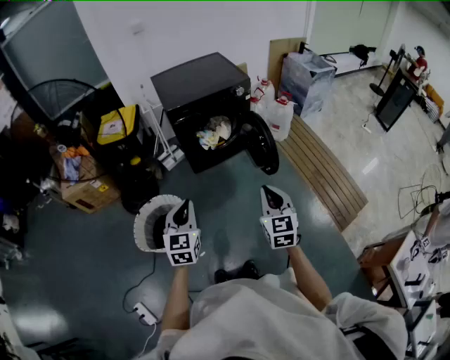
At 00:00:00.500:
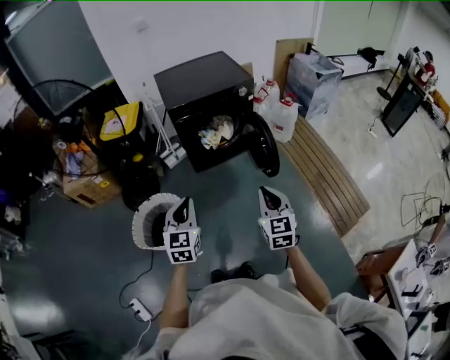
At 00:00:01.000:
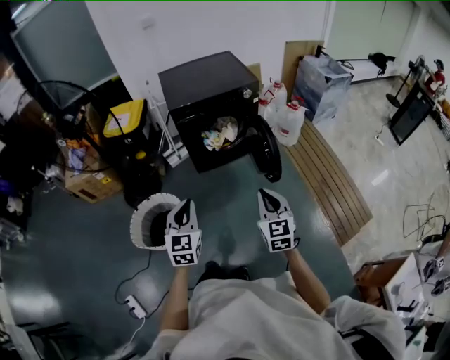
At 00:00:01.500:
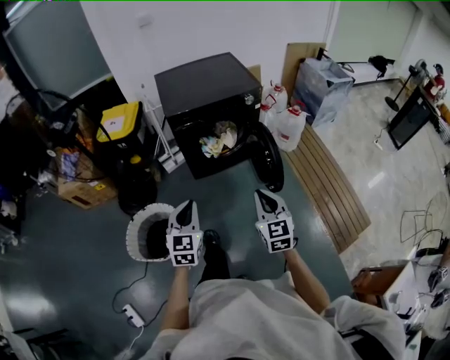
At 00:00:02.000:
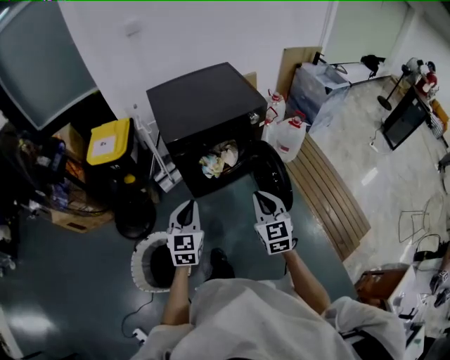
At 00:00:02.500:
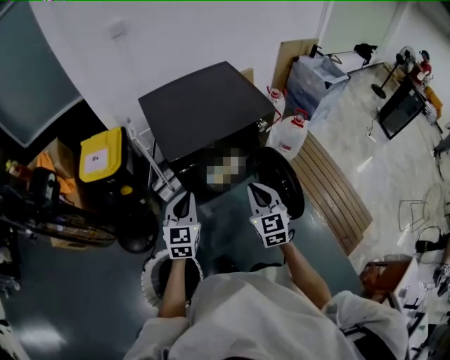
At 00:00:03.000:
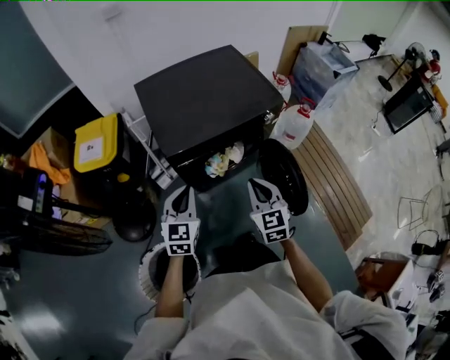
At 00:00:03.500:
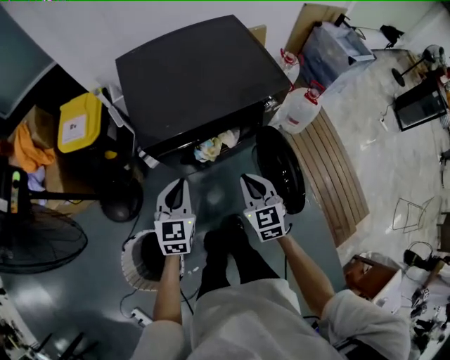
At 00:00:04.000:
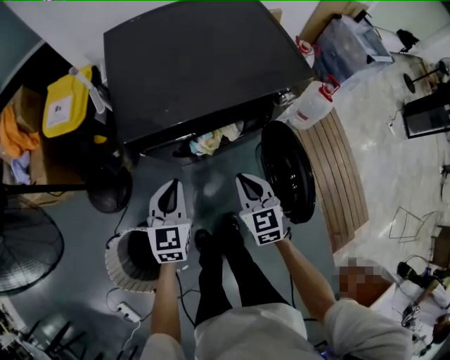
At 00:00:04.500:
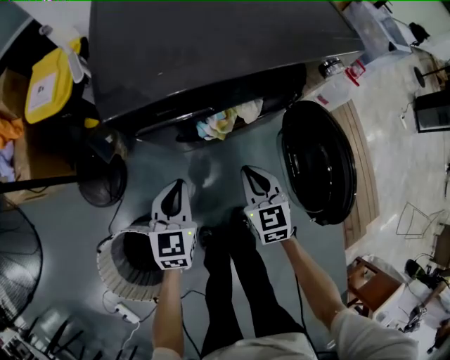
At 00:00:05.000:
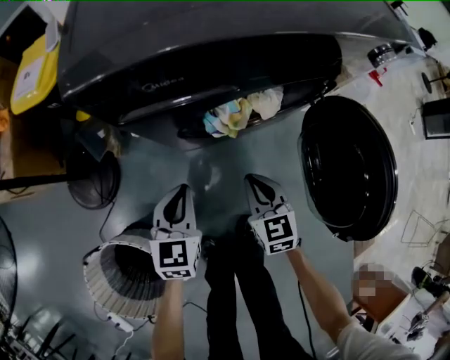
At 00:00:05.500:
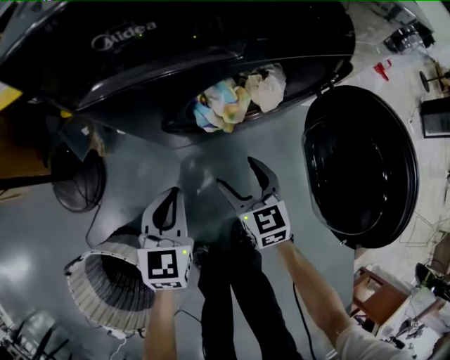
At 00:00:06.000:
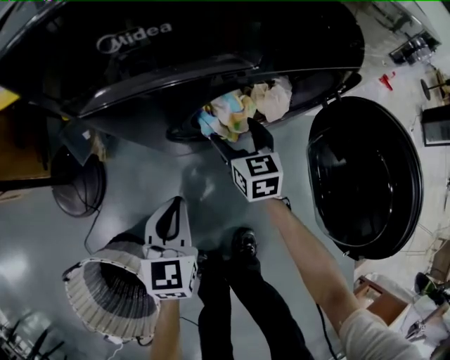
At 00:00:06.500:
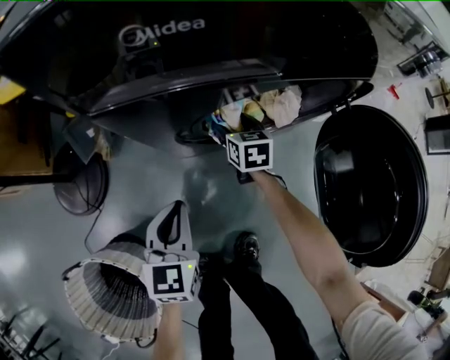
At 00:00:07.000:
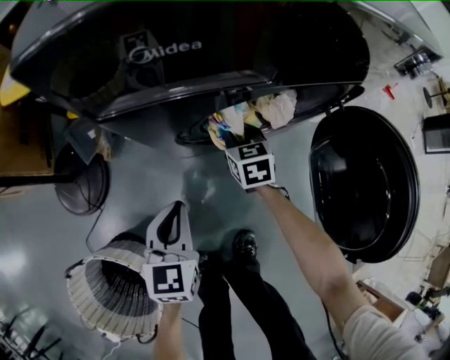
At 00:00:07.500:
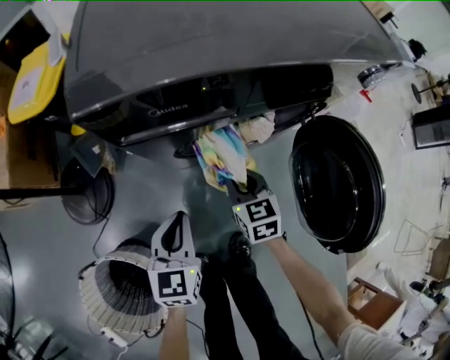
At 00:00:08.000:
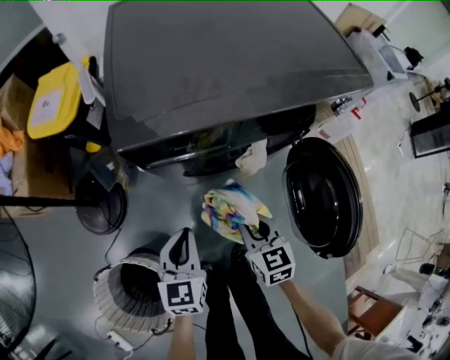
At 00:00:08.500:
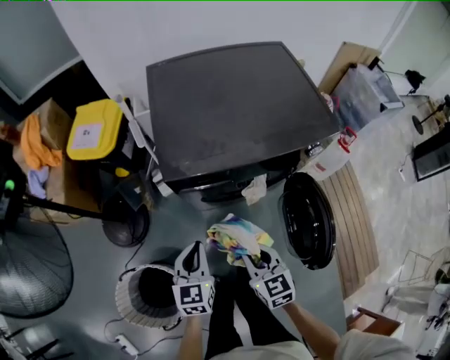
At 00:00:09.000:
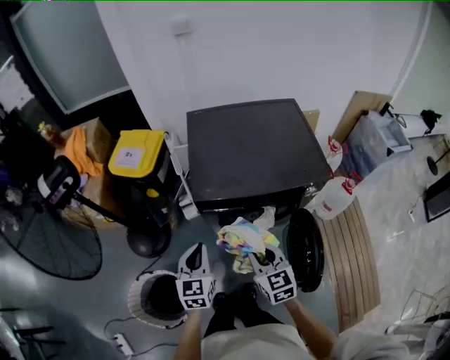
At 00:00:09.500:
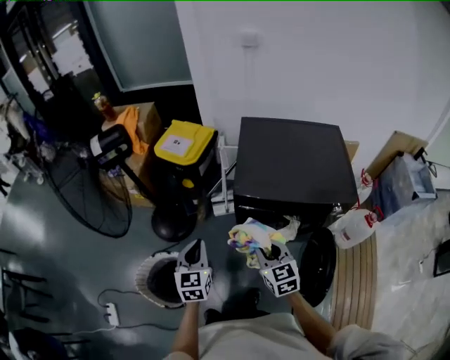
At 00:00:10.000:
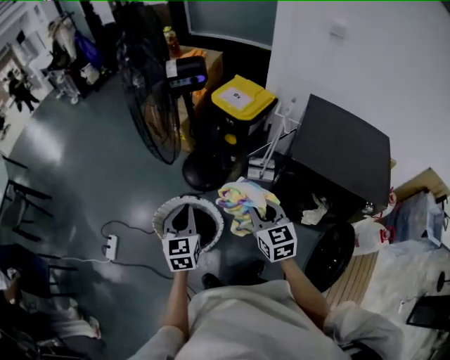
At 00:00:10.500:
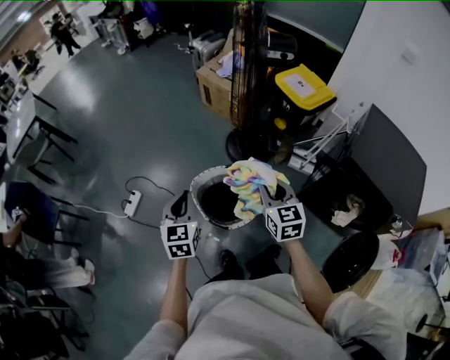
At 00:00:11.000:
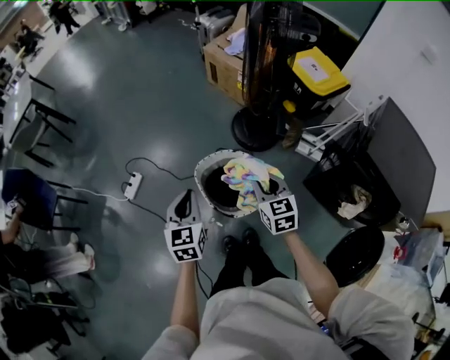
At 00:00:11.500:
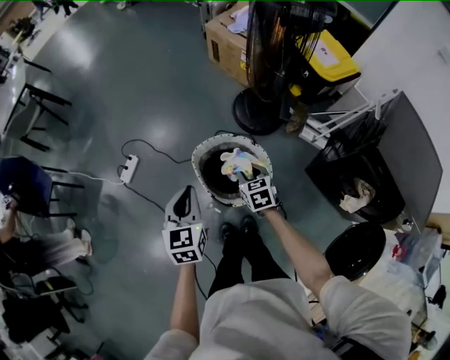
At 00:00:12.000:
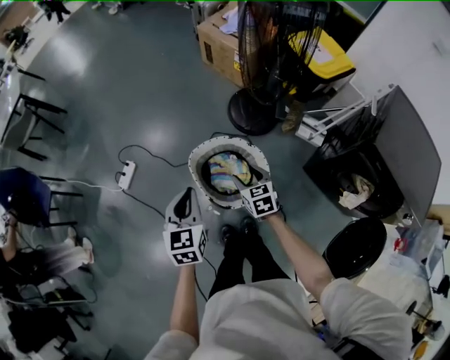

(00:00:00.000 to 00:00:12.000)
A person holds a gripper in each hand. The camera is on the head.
00:00:00.000 - 00:00:02.000: The two grippers go some 30 cm forward.
00:00:02.000 - 00:00:04.000: Both grippers travel together forward and downward, approximately 35 cm.
00:00:04.000 - 00:00:06.000: The left gripper heads downward, covering roughly 35 cm; the right gripper moves downward and forward, some 40 cm, and opens its fingers.
00:00:06.000 - 00:00:08.000: The left gripper goes some 15 cm upward, while the right gripper heads upward and backward, covering some 25 cm, and closes.
00:00:08.000 - 00:00:10.000: The right gripper goes some 40 cm upward, and swivels approximately 50 degrees. Meanwhile the left gripper moves roughly 50 cm, and rotates approximately 50 degrees.
00:00:10.000 - 00:00:12.000: The left gripper is displaced to the left and downward by approximately 25 cm, and changes its angle by some 20 degrees. Meanwhile the right gripper travels to the left, downward and forward by roughly 40 cm, rotates approximately 30 degrees, and opens its fingers.

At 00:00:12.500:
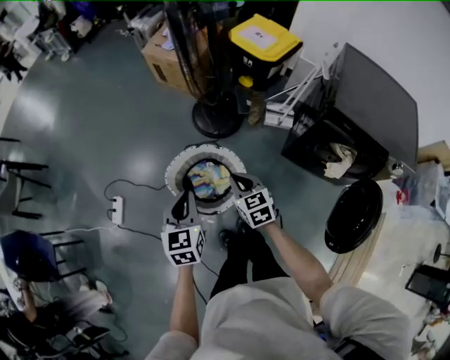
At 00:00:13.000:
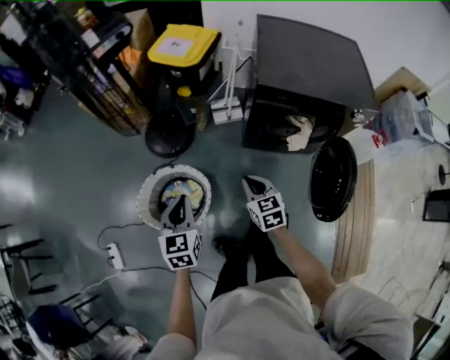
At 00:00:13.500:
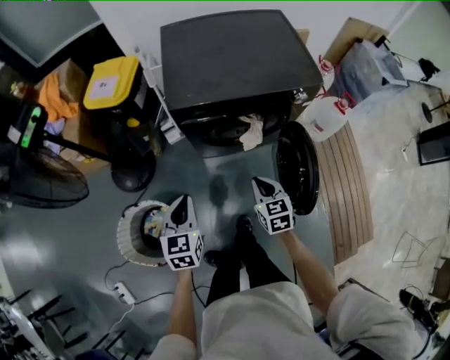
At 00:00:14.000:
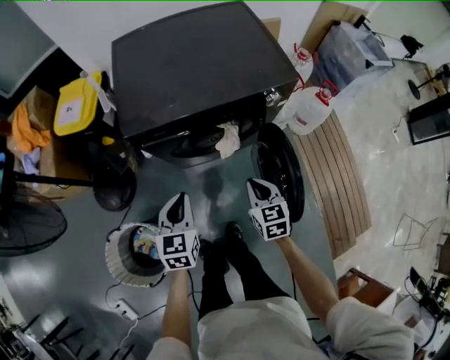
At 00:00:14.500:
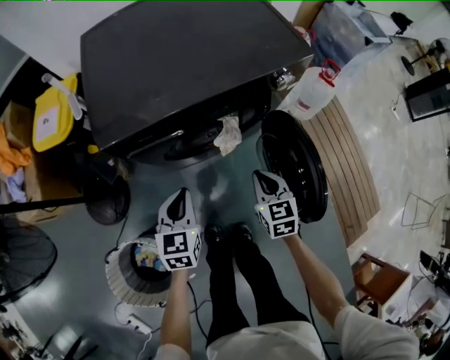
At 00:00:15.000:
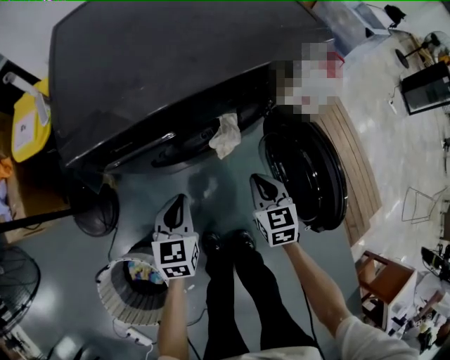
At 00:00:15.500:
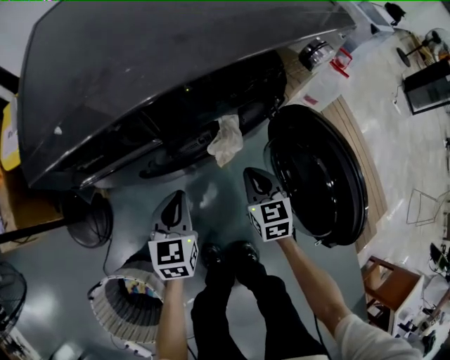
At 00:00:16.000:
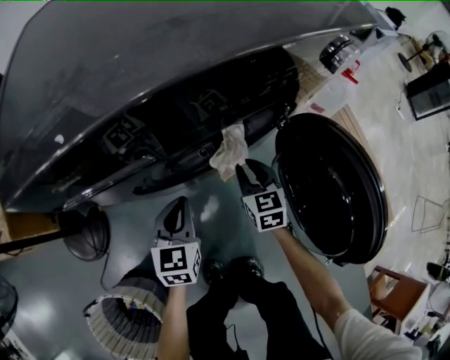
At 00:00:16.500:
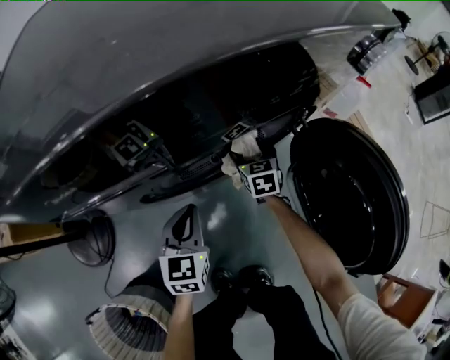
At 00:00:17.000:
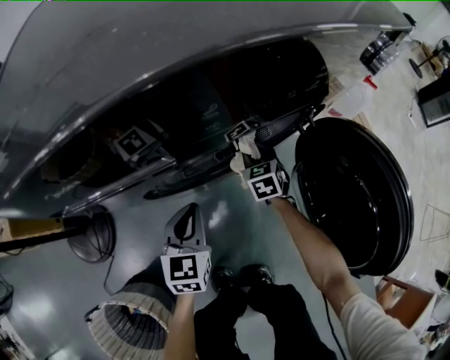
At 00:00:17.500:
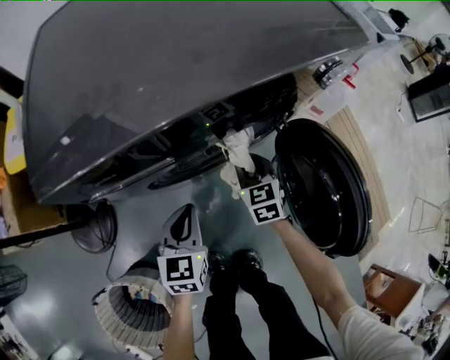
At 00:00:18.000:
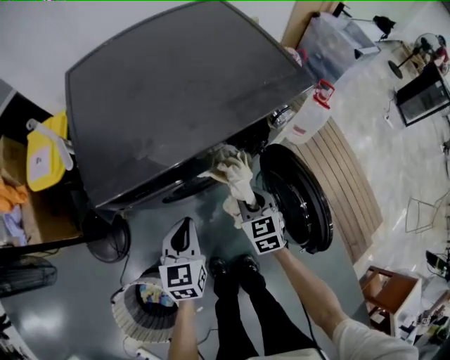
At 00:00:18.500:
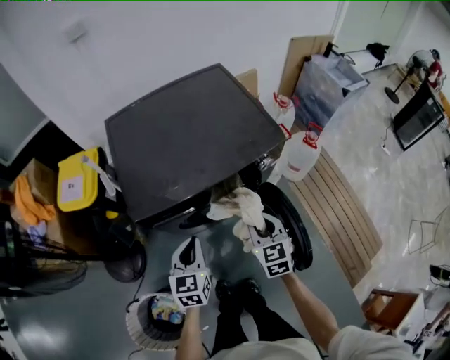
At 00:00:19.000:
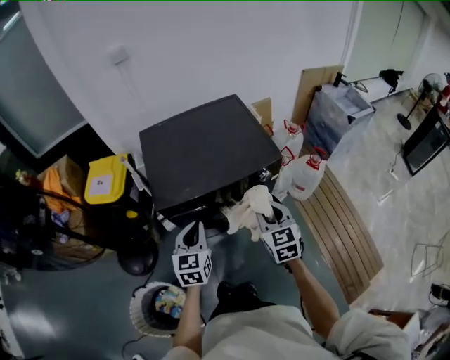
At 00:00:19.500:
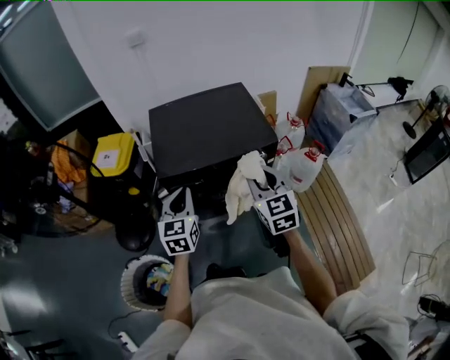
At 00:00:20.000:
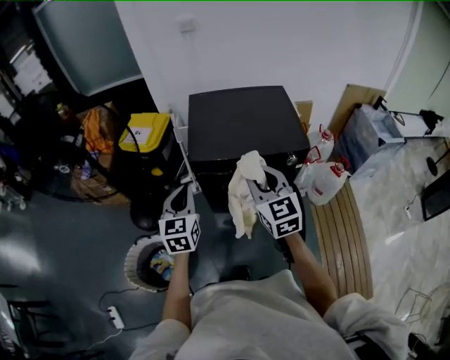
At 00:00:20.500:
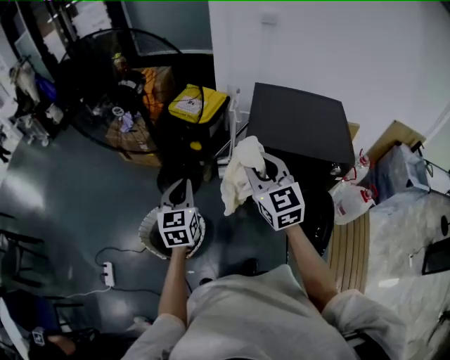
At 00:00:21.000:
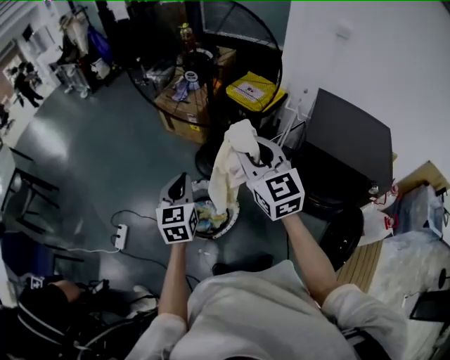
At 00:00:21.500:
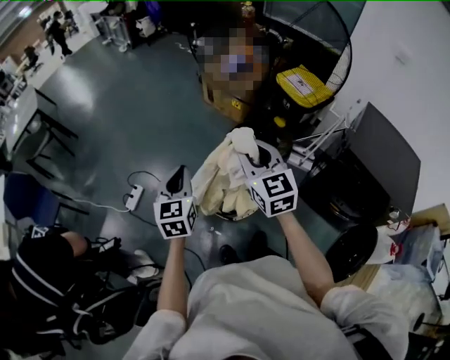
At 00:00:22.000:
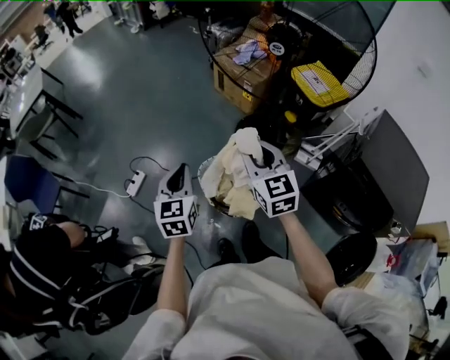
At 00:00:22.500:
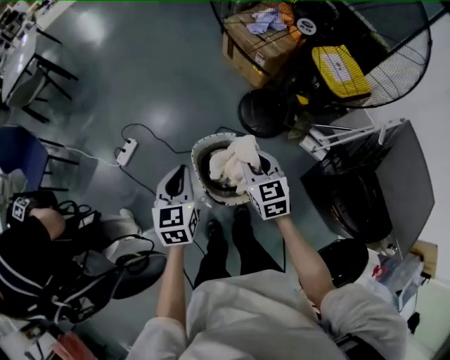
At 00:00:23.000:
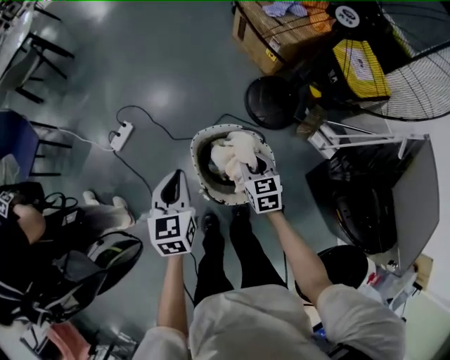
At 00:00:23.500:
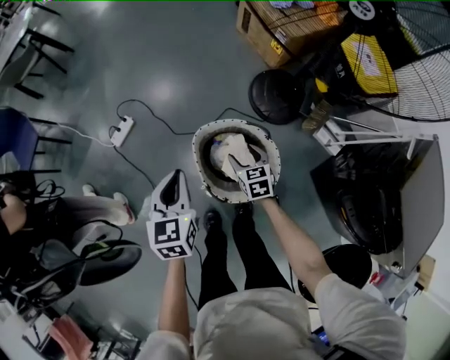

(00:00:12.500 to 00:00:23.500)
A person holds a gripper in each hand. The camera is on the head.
00:00:12.500 - 00:00:14.500: The pair of grippers is taken some 60 cm. The right gripper swivels approximately 60 degrees, while the left gripper turns by about 60 degrees.
00:00:14.500 - 00:00:16.000: The two grippers go about 25 cm downward and forward.
00:00:16.000 - 00:00:18.000: Both grippers travel together upward, some 20 cm. The right gripper opens, then closes again.
00:00:18.000 - 00:00:20.000: Both grippers travel together upward, approximately 40 cm. The right gripper changes its angle by roughly 40 degrees, while the left gripper turns by approximately 30 degrees.
00:00:20.000 - 00:00:21.500: The two grippers travel together, roughly 60 cm. The left gripper swivels some 50 degrees. Meanwhile the right gripper rotates roughly 50 degrees.
00:00:21.500 - 00:00:23.500: The left gripper goes about 20 cm downward, and swivels about 20 degrees. The right gripper heads downward, covering roughly 50 cm, tips its fingers downward by approximately 30 degrees, and opens up.

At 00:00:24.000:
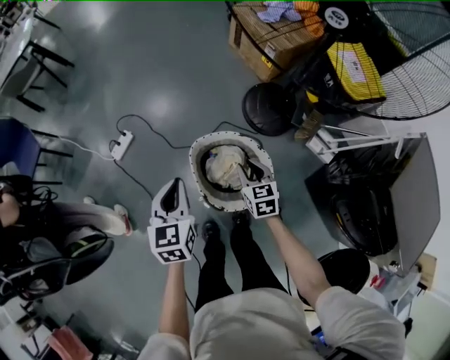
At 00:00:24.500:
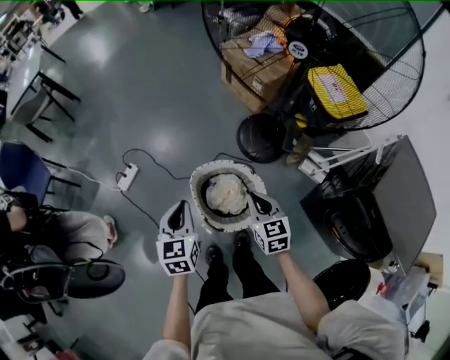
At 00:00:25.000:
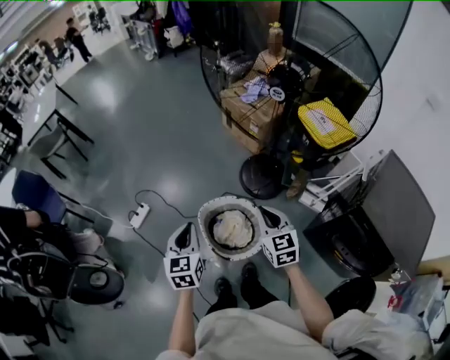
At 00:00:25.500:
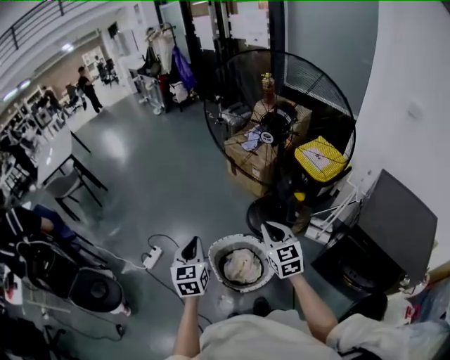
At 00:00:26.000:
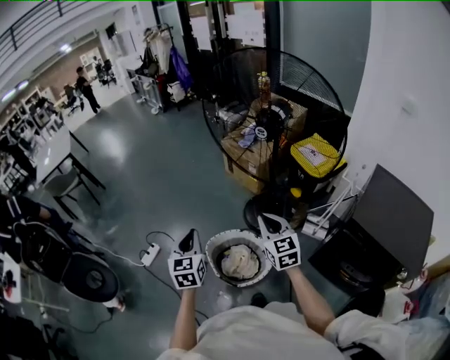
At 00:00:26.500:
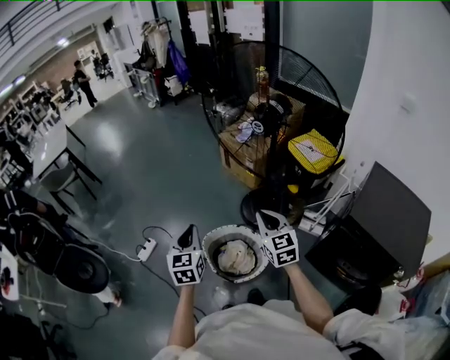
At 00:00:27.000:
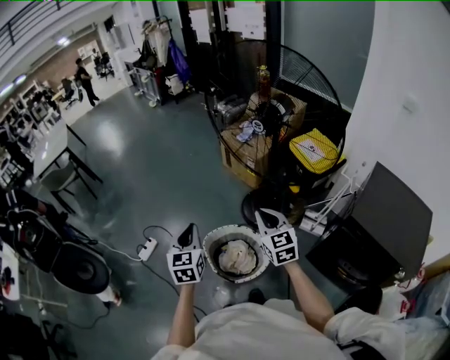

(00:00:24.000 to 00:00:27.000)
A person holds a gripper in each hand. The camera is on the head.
00:00:24.000 - 00:00:25.500: The right gripper travels upward by some 35 cm, and swivels approximately 30 degrees; the left gripper heads upward, covering roughly 20 cm.
00:00:25.500 - 00:00:27.000: The grippers stay close to where they were, moving slightly.
